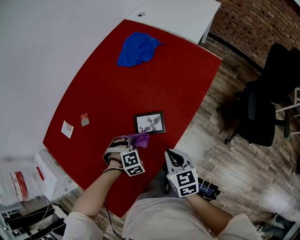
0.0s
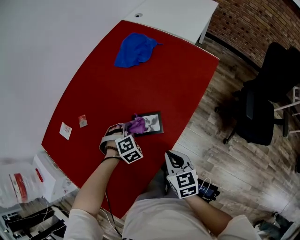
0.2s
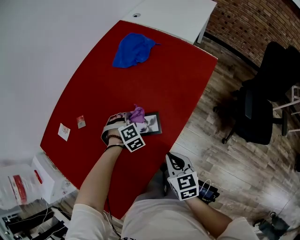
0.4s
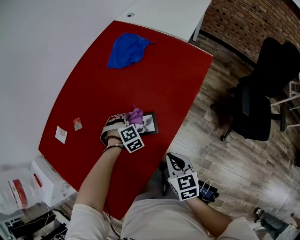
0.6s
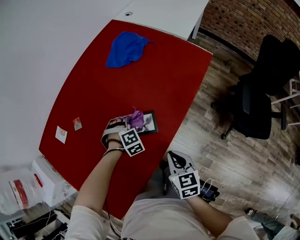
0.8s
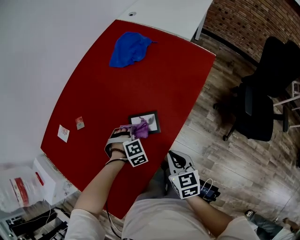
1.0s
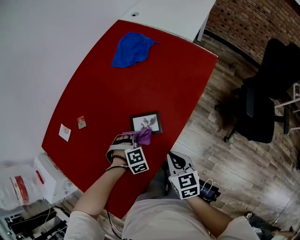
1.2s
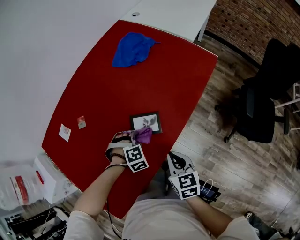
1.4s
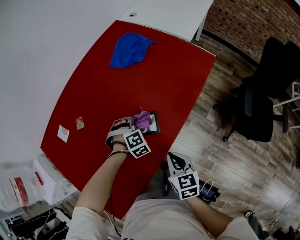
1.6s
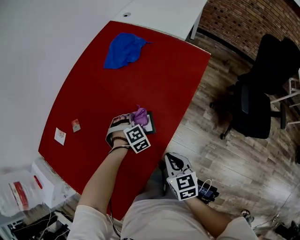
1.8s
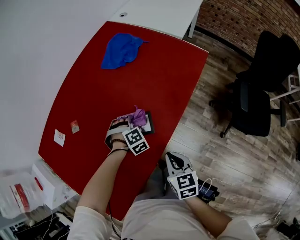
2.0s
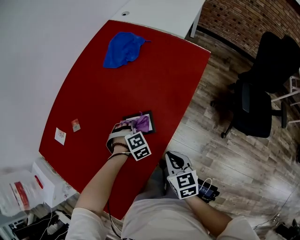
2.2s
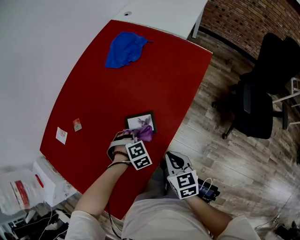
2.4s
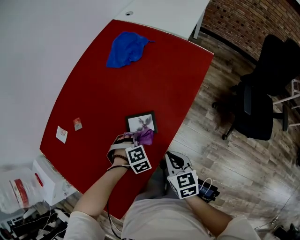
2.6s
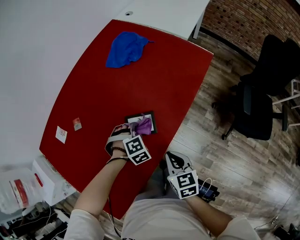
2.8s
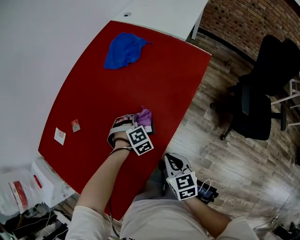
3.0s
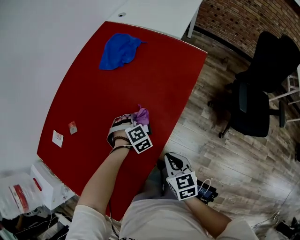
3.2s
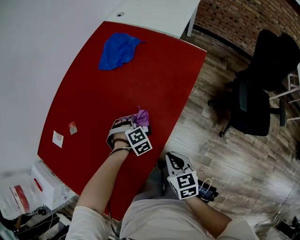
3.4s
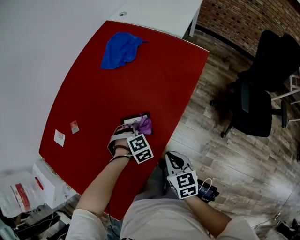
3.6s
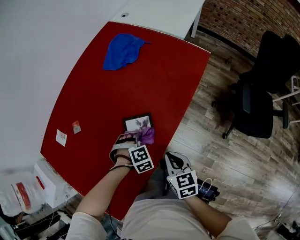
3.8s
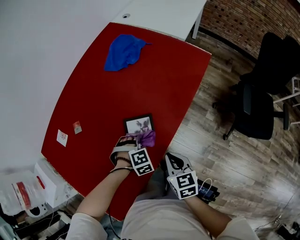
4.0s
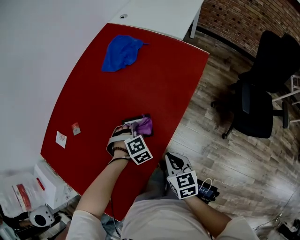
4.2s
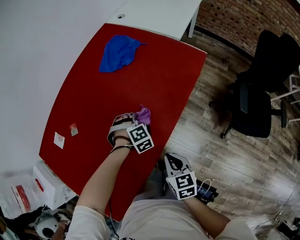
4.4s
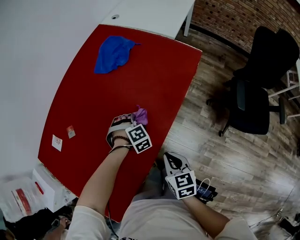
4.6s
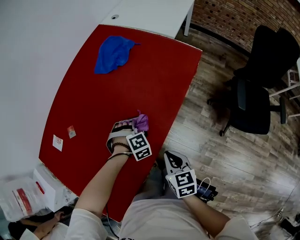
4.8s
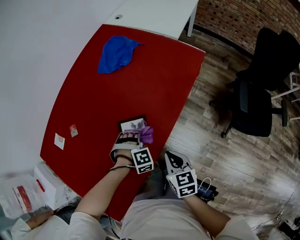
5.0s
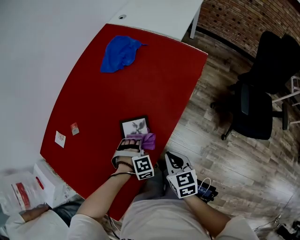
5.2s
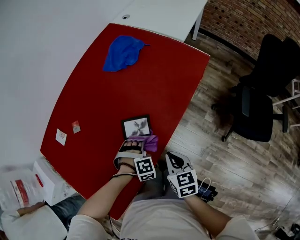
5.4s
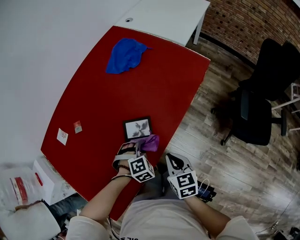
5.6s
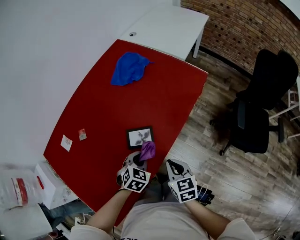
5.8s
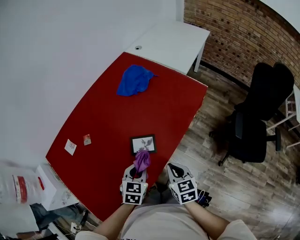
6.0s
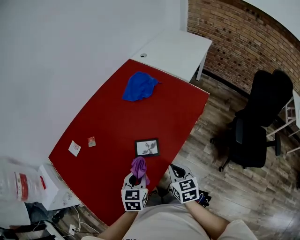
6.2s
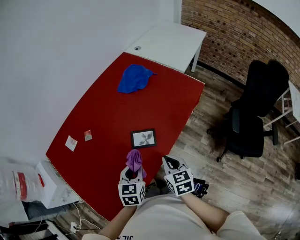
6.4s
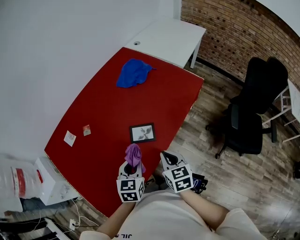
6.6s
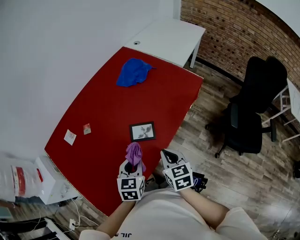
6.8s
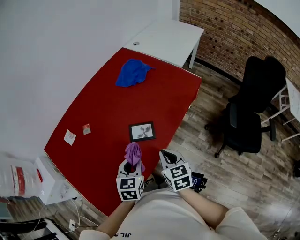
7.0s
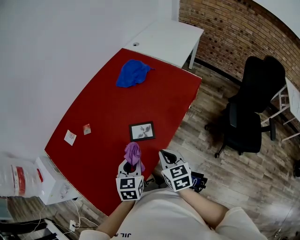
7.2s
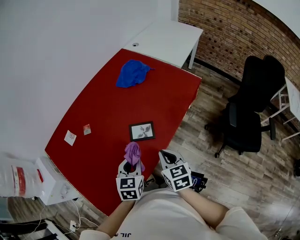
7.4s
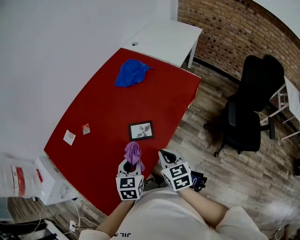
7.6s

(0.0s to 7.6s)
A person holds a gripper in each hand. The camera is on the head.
0.0s - 1.6s: The left gripper goes forward and backward, some 10 cm each way, reversing 2 times.
1.6s - 3.0s: The left gripper goes backward and returns, approximately 10 cm each way.
3.0s - 4.6s: The left gripper travels backward and back again, about 10 cm each way.
4.6s - 6.0s: The right gripper heads upward, covering roughly 5 cm; the left gripper heads backward and upward, covering approximately 20 cm, and rolls counterclockwise, seen from behind, by approximately 70 degrees.
6.0s - 7.6s: The left gripper moves about 10 cm; the right gripper moves approximately 5 cm.

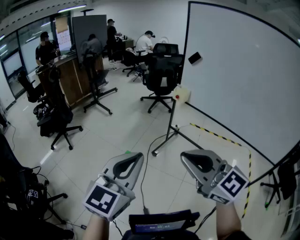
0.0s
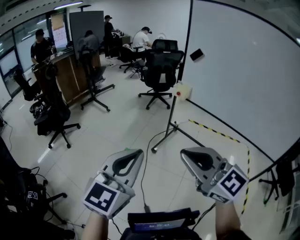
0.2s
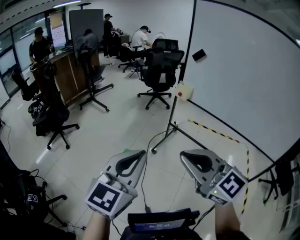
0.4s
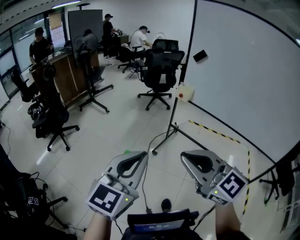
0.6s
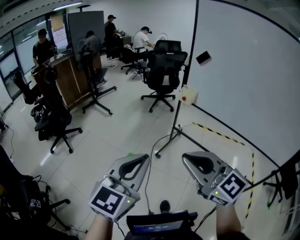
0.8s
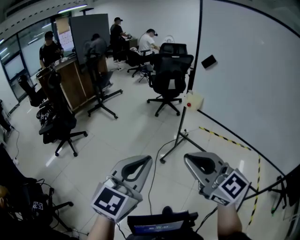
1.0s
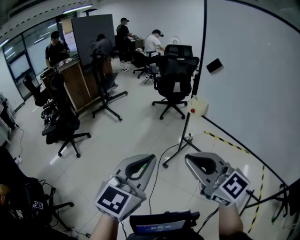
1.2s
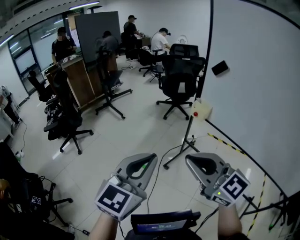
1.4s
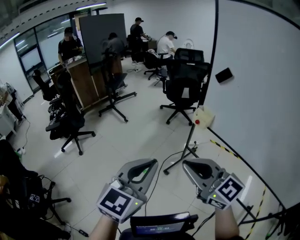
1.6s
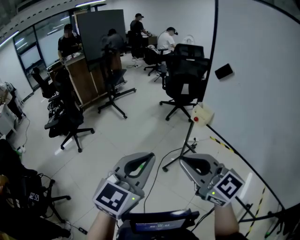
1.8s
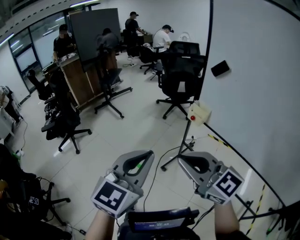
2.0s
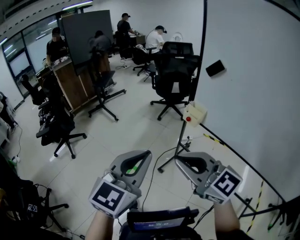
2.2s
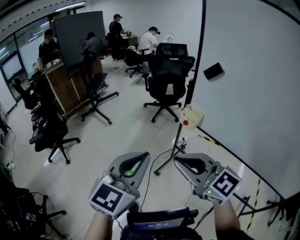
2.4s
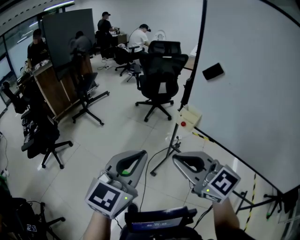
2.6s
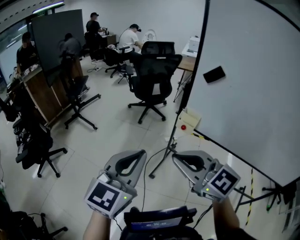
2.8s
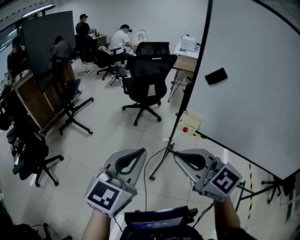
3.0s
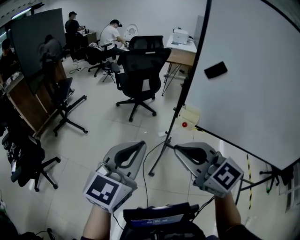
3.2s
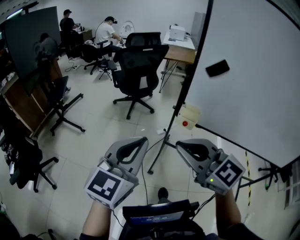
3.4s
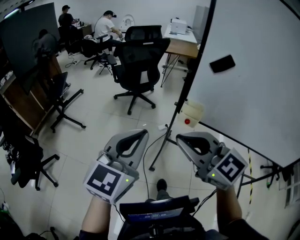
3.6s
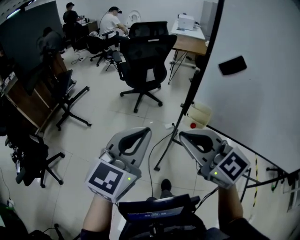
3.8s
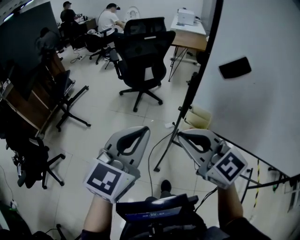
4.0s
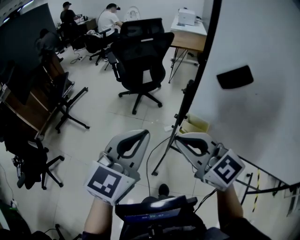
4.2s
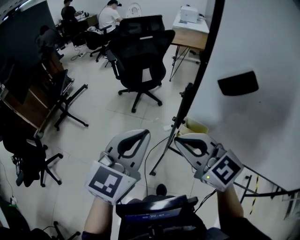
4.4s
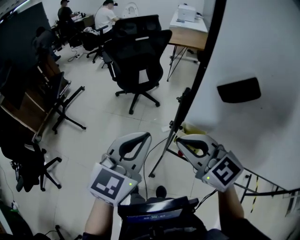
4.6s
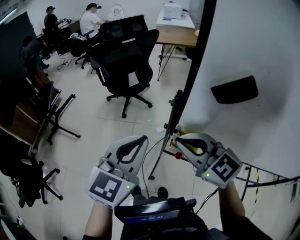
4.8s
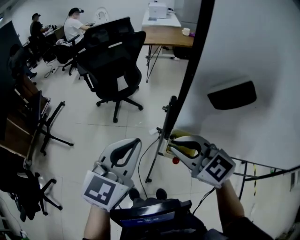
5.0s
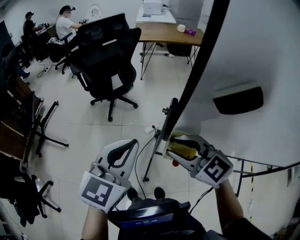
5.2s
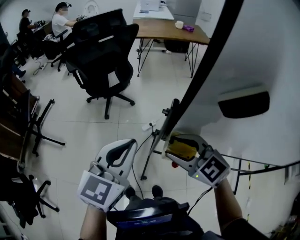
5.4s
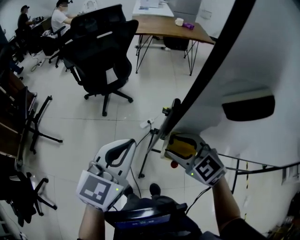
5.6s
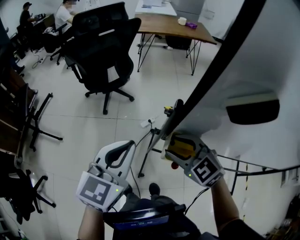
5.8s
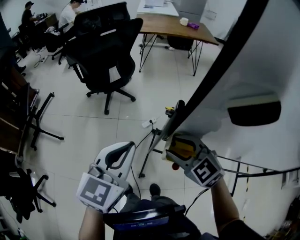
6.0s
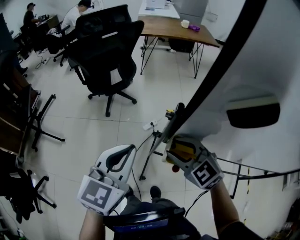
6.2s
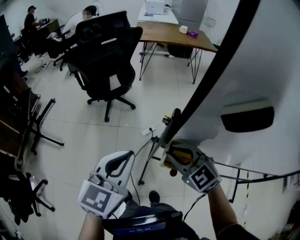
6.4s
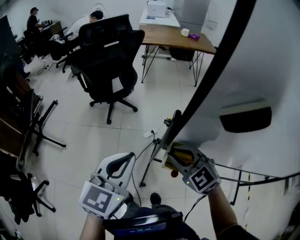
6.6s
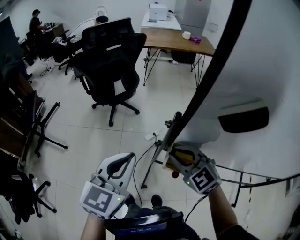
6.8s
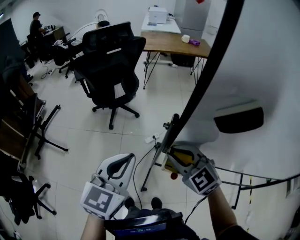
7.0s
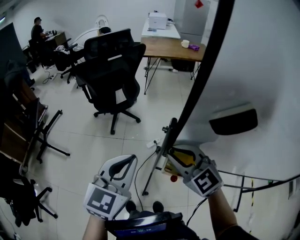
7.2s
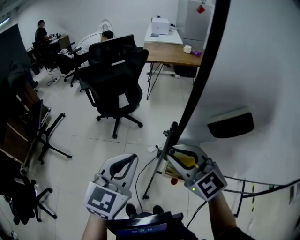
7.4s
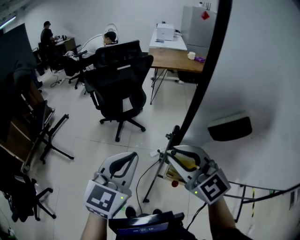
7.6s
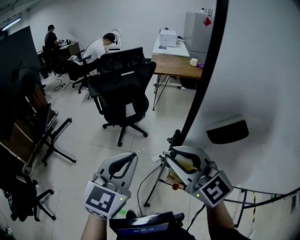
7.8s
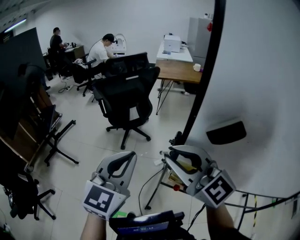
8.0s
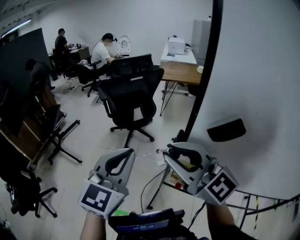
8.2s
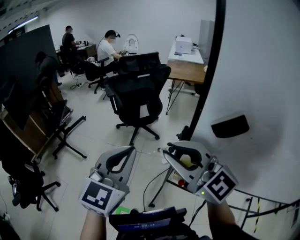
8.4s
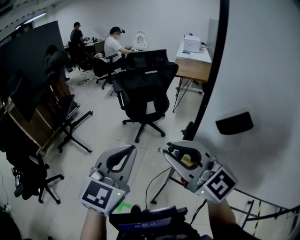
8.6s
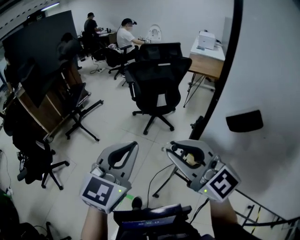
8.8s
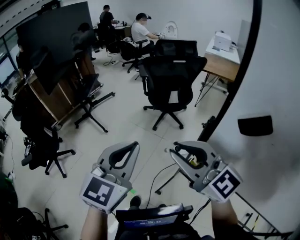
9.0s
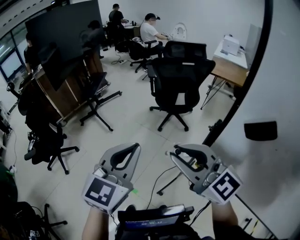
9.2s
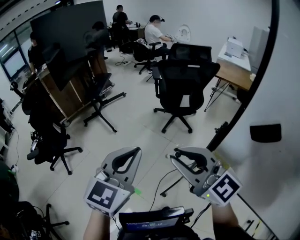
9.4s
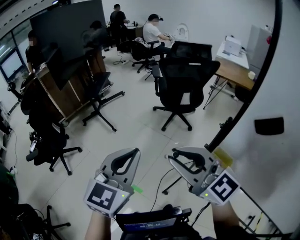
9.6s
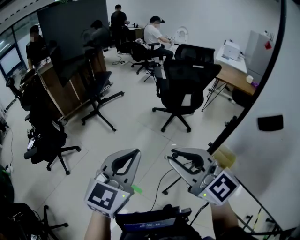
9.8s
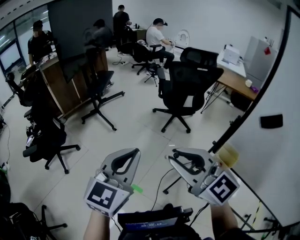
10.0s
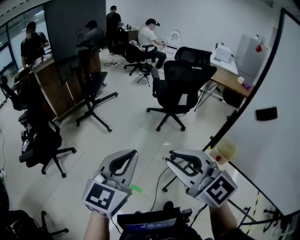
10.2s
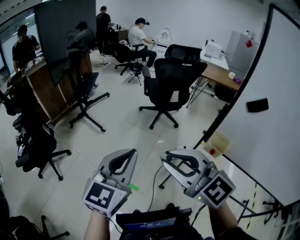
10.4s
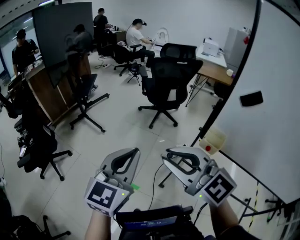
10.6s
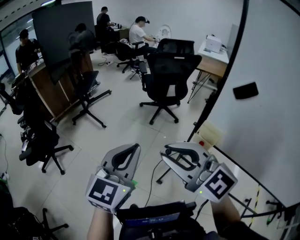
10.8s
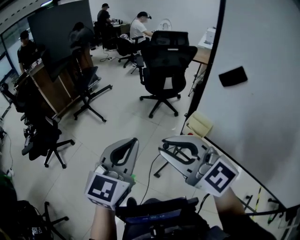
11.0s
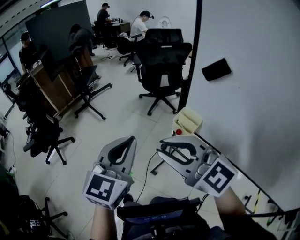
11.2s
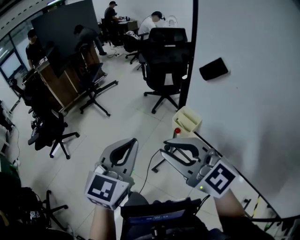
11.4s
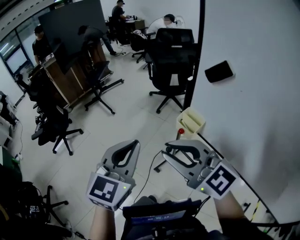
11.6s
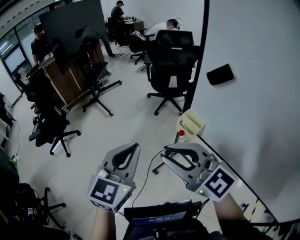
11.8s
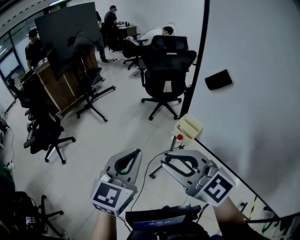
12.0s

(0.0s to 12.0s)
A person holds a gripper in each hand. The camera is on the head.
0.0s - 1.6s: Both grippers travel together forward, about 25 cm.
1.6s - 3.0s: Both grippers move forward, some 20 cm.
3.0s - 4.4s: The left gripper moves forward and to the right, some 30 cm; the right gripper is displaced forward by approximately 25 cm.
4.4s - 6.0s: The left gripper heads forward and downward, covering approximately 15 cm. The right gripper goes some 20 cm downward and forward, turns by approximately 20 degrees, and opens up.
6.0s - 7.6s: The right gripper heads upward, covering roughly 15 cm, rotates about 30 degrees, and closes its fingers; the left gripper is displaced upward by roughly 5 cm.
7.6s - 9.0s: The left gripper moves approximately 15 cm, and changes its angle by roughly 20 degrees. Meanwhile the right gripper shifts by about 10 cm, and changes its angle by some 30 degrees.
9.0s - 10.4s: The two grippers go roughly 25 cm to the left.
10.4s - 12.0s: The two grippers go roughly 25 cm to the right and backward.

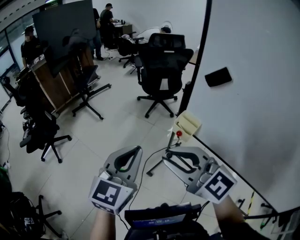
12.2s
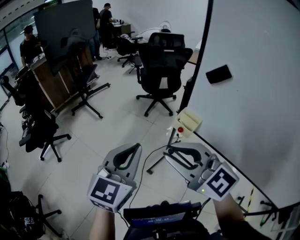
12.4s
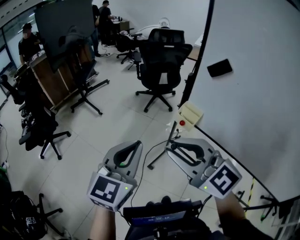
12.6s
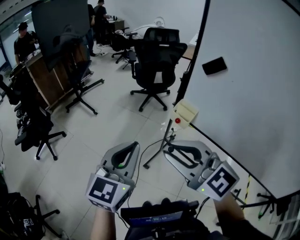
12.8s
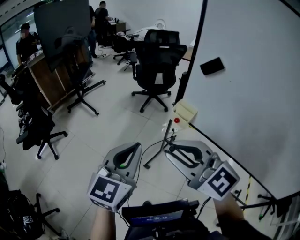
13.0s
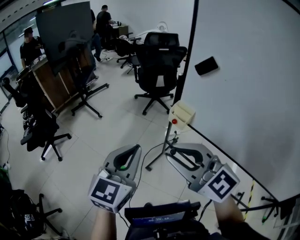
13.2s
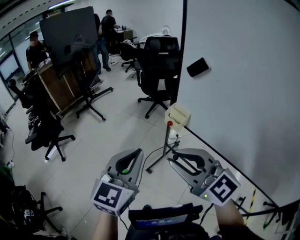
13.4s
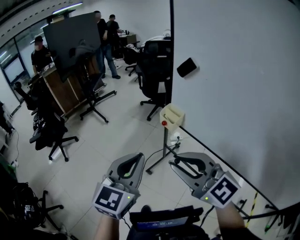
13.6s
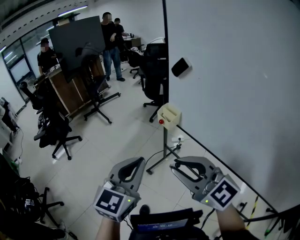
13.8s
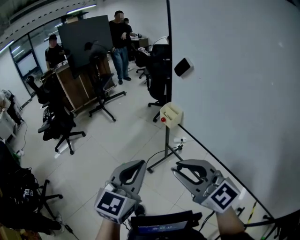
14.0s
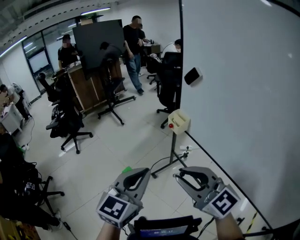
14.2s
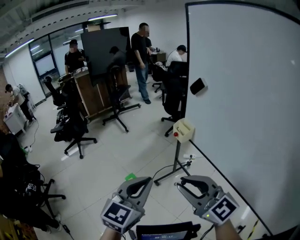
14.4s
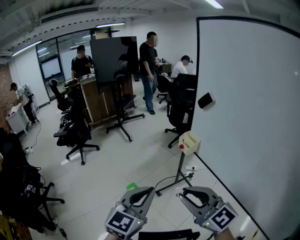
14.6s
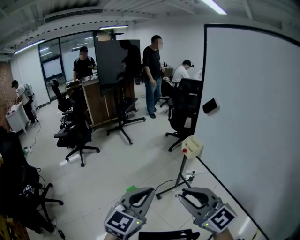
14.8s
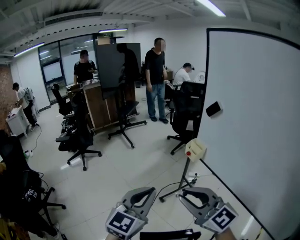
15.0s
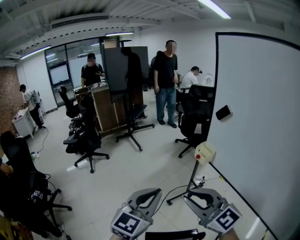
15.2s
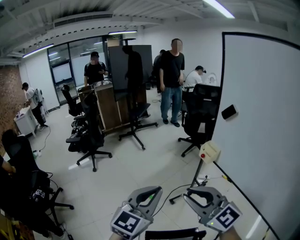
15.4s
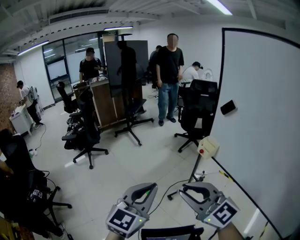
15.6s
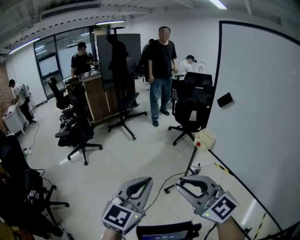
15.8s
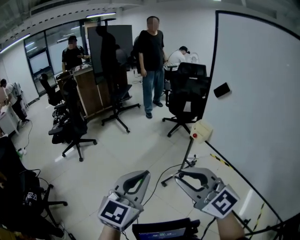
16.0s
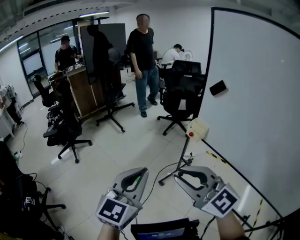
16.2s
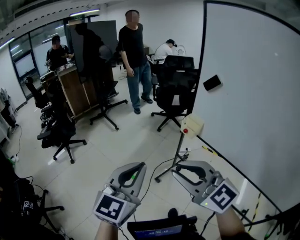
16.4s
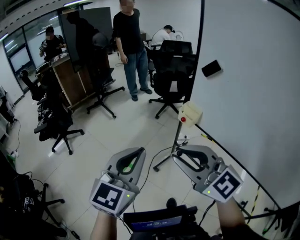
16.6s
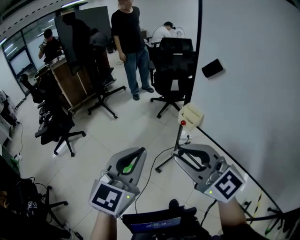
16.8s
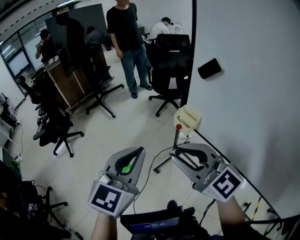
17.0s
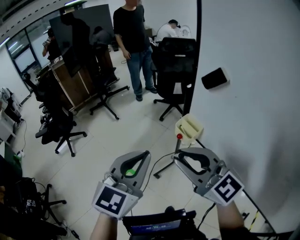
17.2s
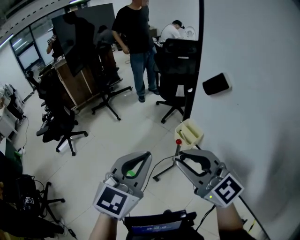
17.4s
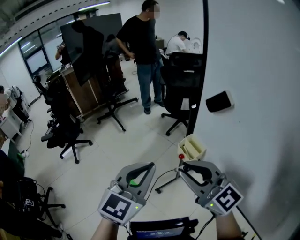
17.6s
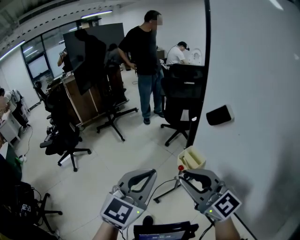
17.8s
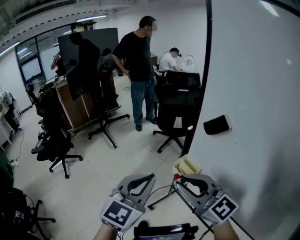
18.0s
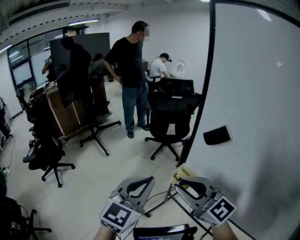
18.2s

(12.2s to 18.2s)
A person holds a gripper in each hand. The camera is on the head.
12.2s - 13.8s: The two grippers go roughly 25 cm backward and to the right.
13.8s - 15.2s: Both grippers travel together to the left, about 10 cm.
15.2s - 16.6s: Both grippers travel together forward, approximately 10 cm.
16.6s - 18.2s: The grippers both shift forward and to the right by about 25 cm.
